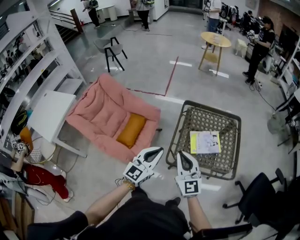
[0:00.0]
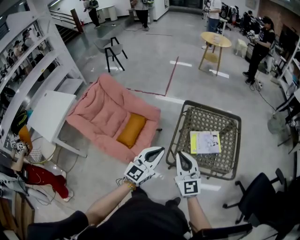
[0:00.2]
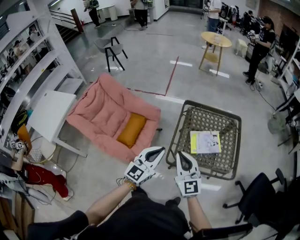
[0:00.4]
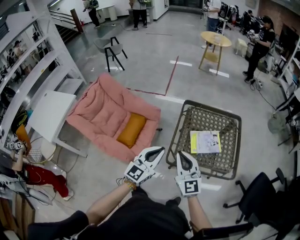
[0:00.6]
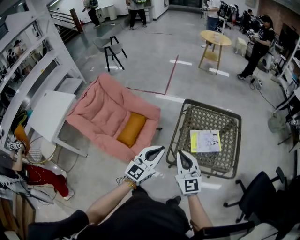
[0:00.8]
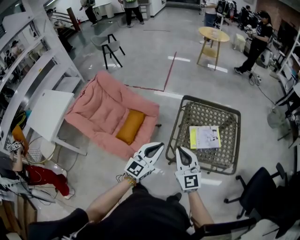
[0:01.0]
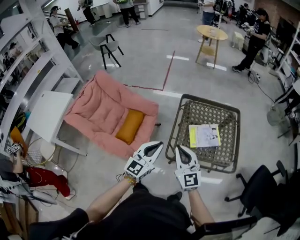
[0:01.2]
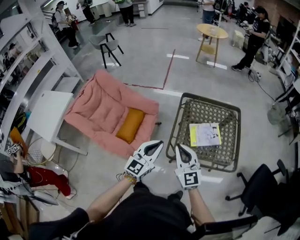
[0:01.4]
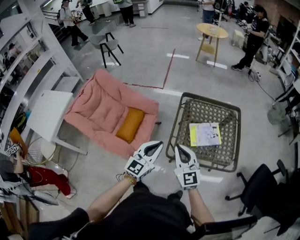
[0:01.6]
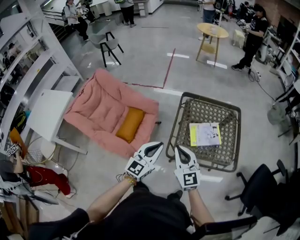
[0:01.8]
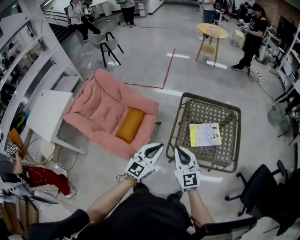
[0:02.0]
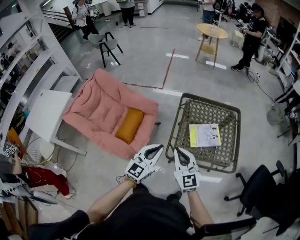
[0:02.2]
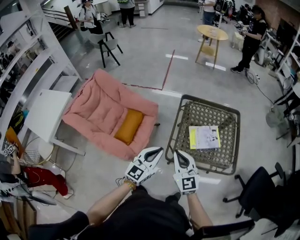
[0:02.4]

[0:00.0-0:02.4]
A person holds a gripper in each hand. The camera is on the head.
0:00.0 to 0:02.4: The grippers move only a little.

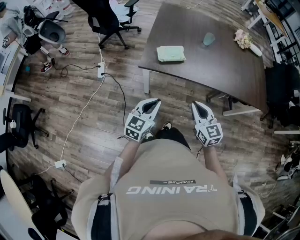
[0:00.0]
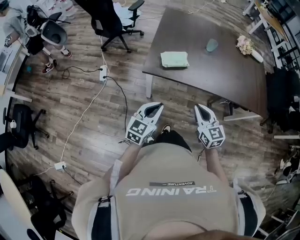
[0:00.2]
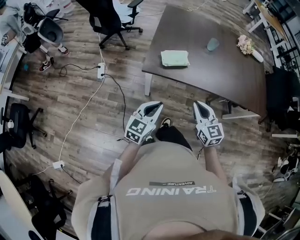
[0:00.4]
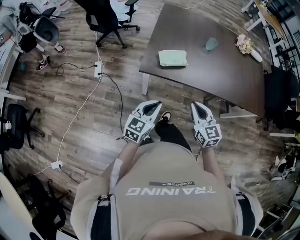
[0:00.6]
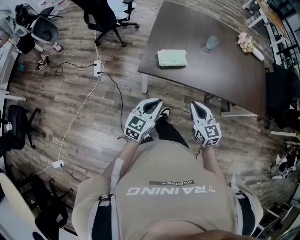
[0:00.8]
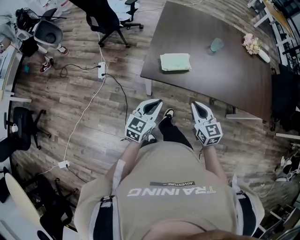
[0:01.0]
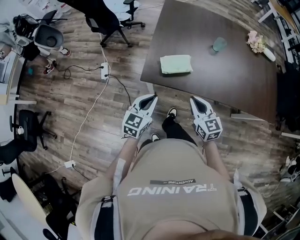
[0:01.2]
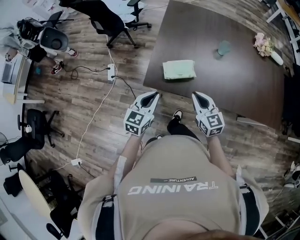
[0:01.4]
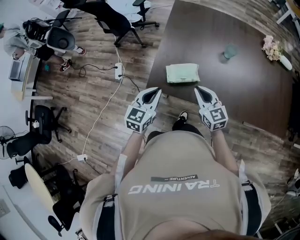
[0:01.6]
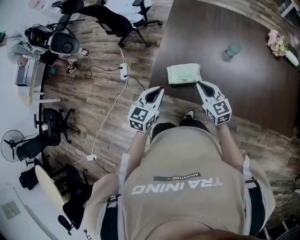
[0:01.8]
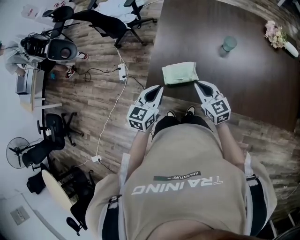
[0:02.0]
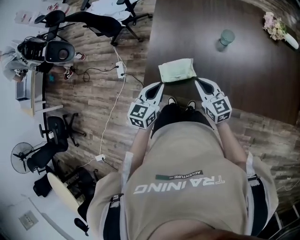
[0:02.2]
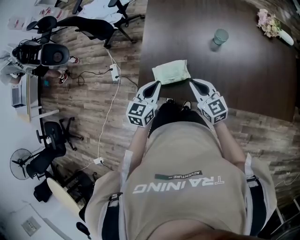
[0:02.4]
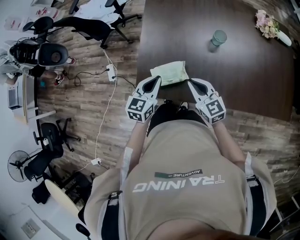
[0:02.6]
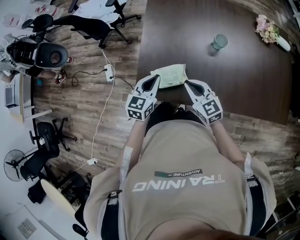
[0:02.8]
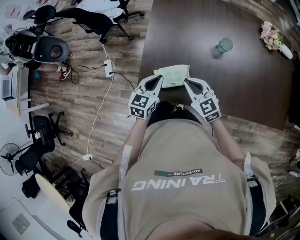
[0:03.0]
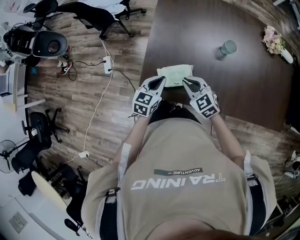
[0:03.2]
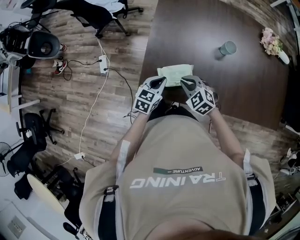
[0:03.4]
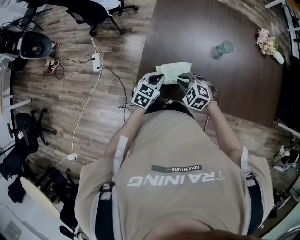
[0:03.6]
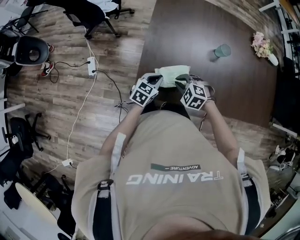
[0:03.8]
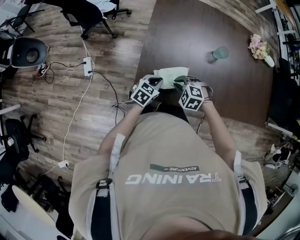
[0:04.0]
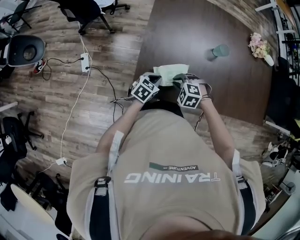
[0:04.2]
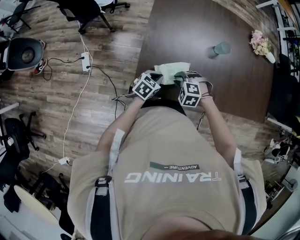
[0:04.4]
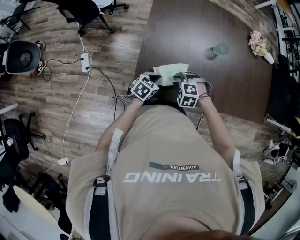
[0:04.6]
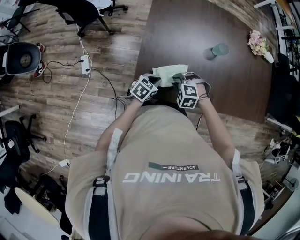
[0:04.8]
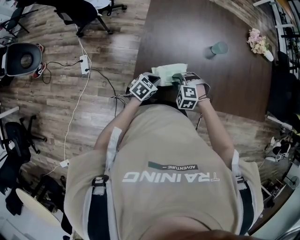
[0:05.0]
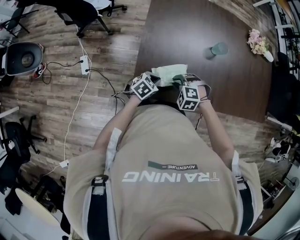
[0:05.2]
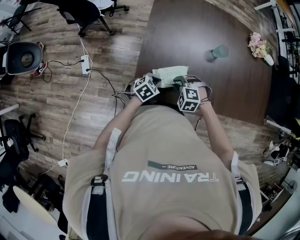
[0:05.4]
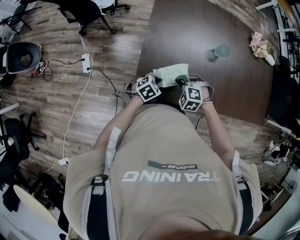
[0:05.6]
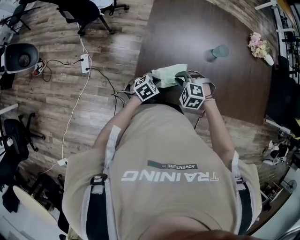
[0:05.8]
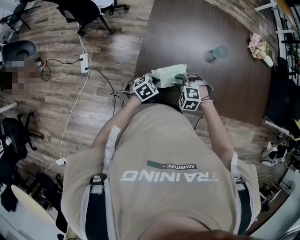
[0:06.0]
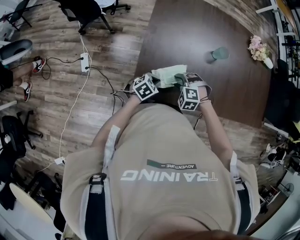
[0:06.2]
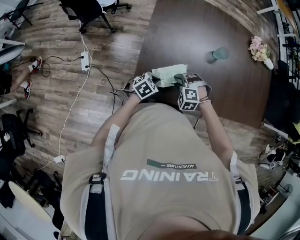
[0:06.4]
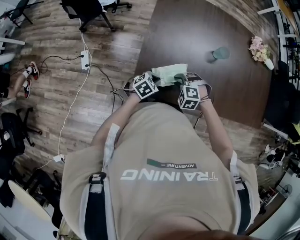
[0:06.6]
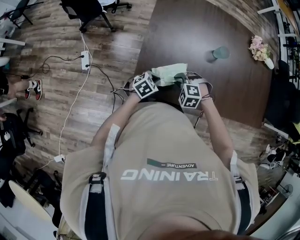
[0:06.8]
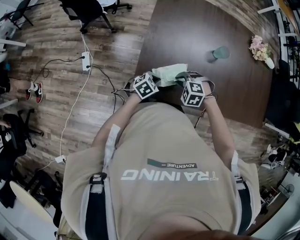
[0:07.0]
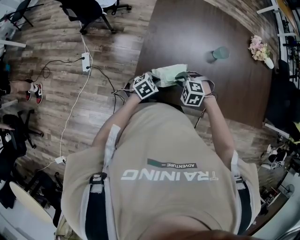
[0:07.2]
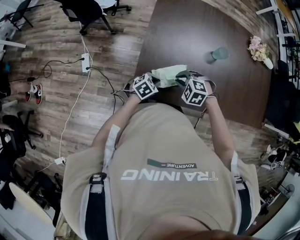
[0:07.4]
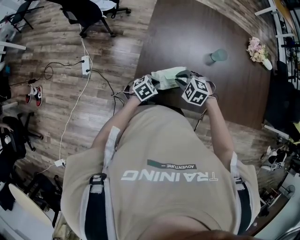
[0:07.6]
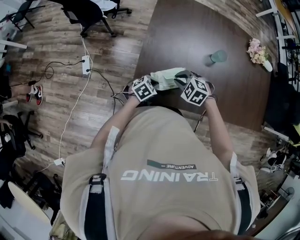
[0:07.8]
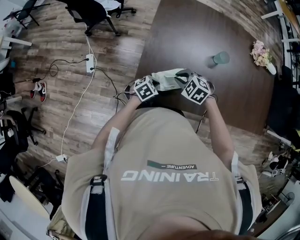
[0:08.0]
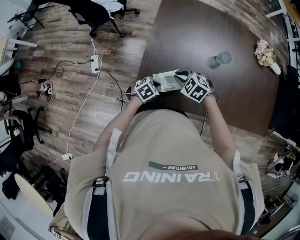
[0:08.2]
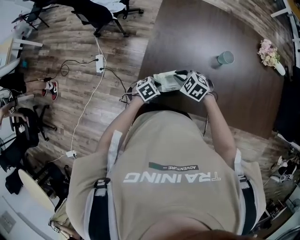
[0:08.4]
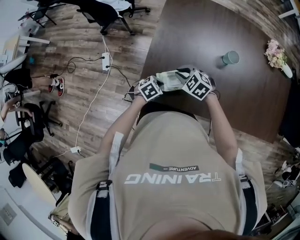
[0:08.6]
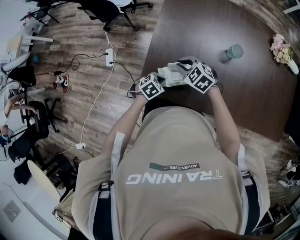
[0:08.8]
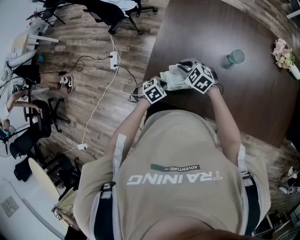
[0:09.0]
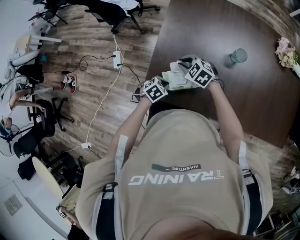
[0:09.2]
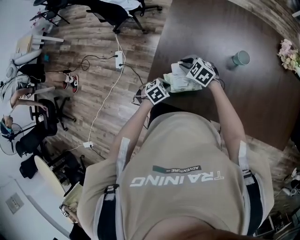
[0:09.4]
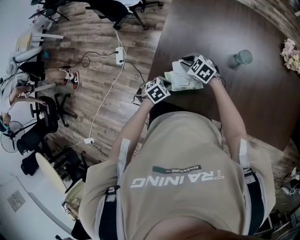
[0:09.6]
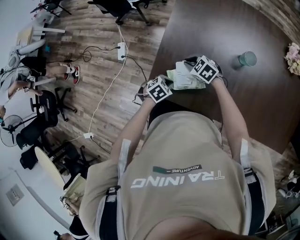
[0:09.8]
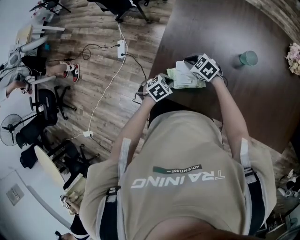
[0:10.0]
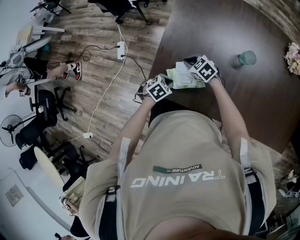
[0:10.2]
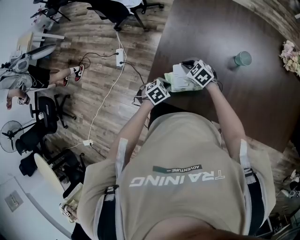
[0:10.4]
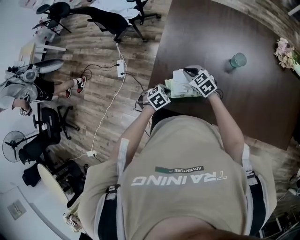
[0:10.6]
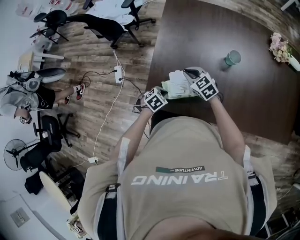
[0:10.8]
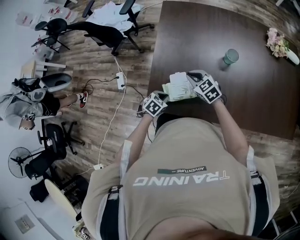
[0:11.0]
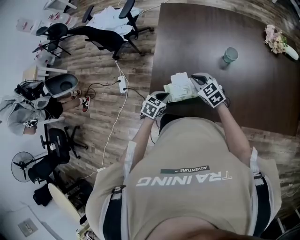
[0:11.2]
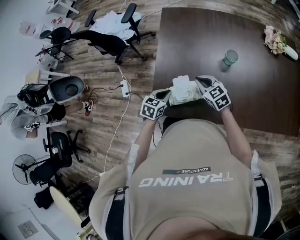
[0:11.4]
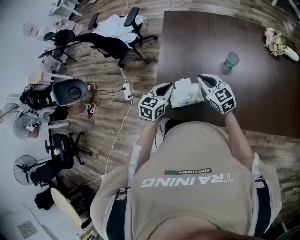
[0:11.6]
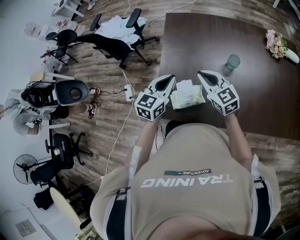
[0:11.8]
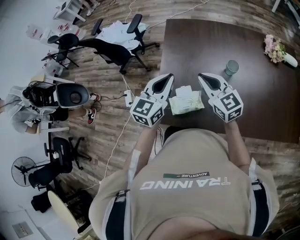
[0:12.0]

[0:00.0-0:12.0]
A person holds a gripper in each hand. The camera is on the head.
0:00.0 to 0:01.6: Both grippers move forward, some 25 cm.
0:01.6 to 0:03.0: The right gripper is displaced forward by about 5 cm, while the left gripper moves forward, downward and to the right, some 15 cm.
0:03.0 to 0:04.4: The left gripper shifts some 15 cm downward, and swivels some 30 degrees; the right gripper heads downward and to the left, covering about 15 cm, and tilts its fingers roughly 50 degrees downward.
0:04.4 to 0:06.0: The grippers make only small movements.
0:06.0 to 0:07.6: The right gripper moves approximately 5 cm, and closes up.
0:07.6 to 0:09.0: The right gripper moves approximately 5 cm, and swivels about 20 degrees.
0:09.0 to 0:10.4: The right gripper shifts some 5 cm downward.
0:10.4 to 0:12.0: Both grippers move upward, approximately 30 cm. The right gripper tilts its fingers approximately 40 degrees upward. The left gripper tips its fingers upward by approximately 60 degrees.

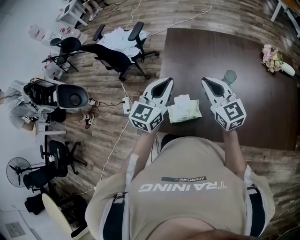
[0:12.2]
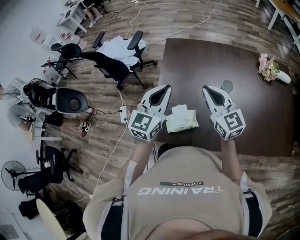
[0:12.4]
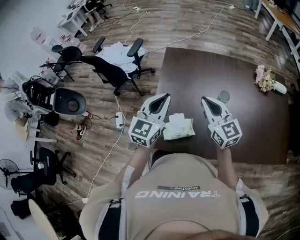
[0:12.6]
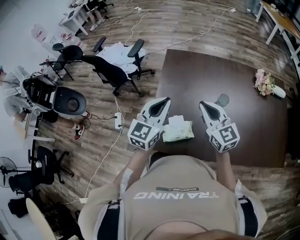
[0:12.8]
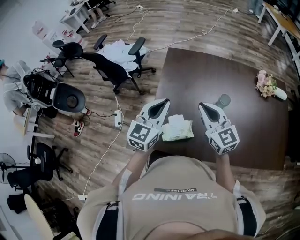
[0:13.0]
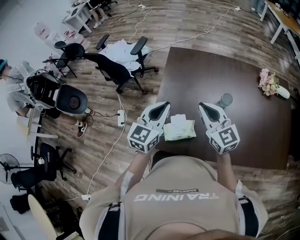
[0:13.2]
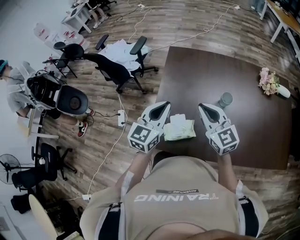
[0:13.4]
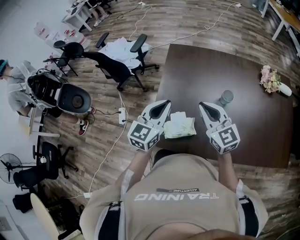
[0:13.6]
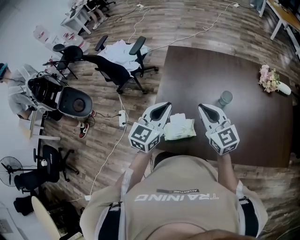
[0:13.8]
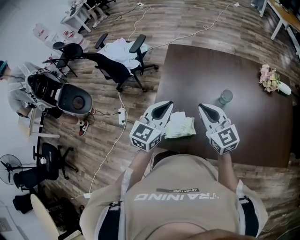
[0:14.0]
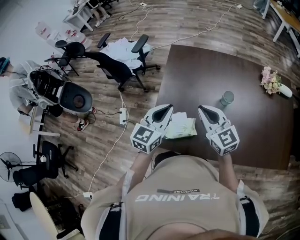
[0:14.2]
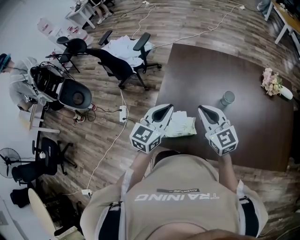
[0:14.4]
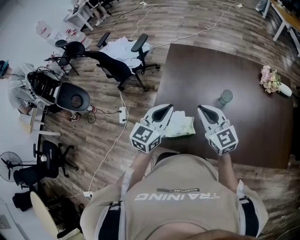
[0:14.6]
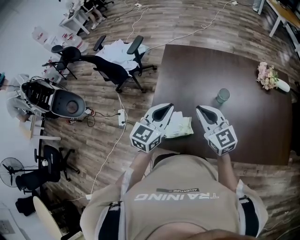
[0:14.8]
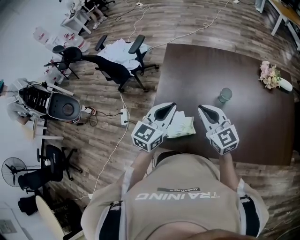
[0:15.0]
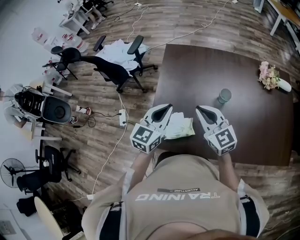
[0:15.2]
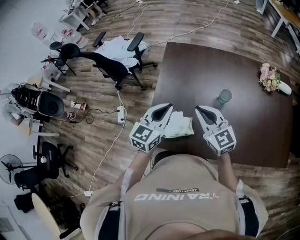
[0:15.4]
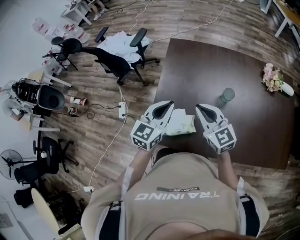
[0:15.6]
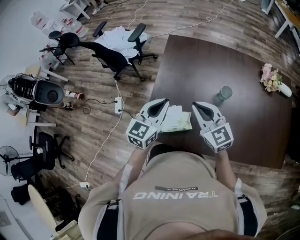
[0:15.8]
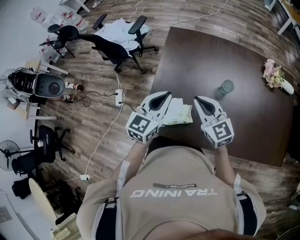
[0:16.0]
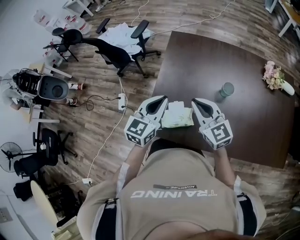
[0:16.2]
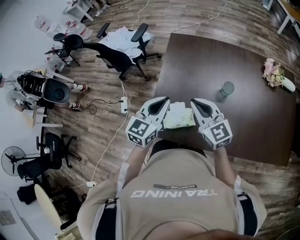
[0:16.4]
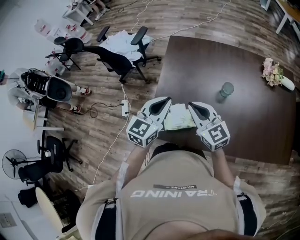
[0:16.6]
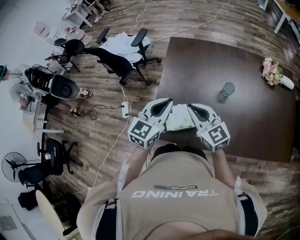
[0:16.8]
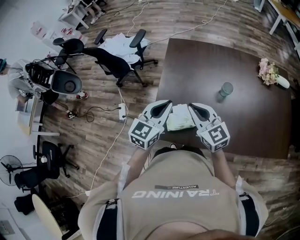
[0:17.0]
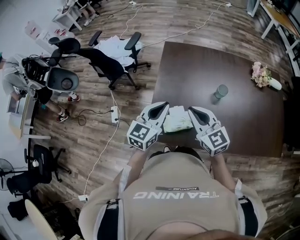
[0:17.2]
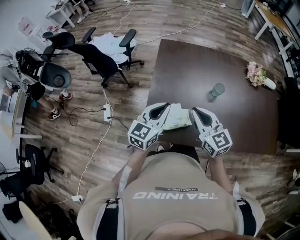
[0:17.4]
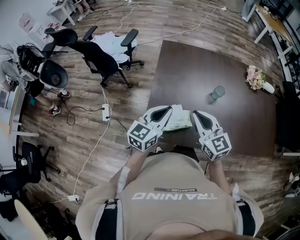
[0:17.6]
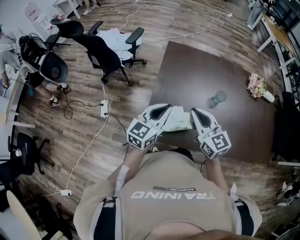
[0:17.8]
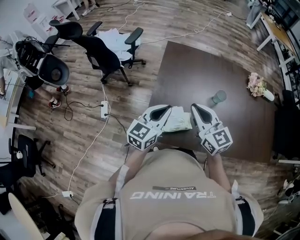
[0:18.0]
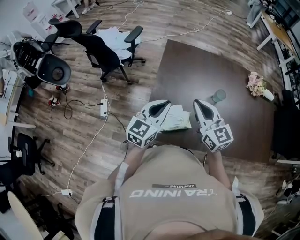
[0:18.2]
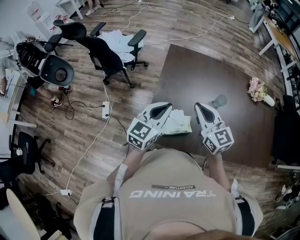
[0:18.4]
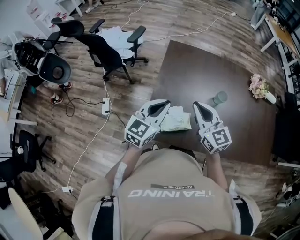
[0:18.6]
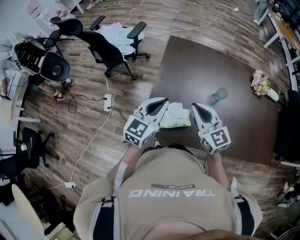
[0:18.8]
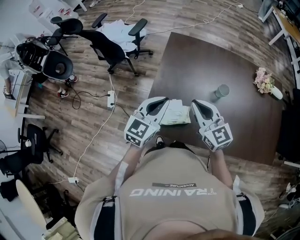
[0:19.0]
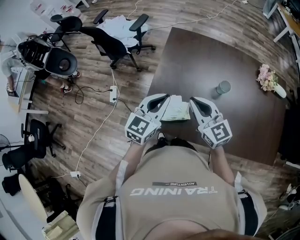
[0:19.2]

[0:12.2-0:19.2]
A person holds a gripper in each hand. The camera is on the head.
0:12.2 to 0:16.4: The grippers move only a little.
0:16.4 to 0:17.8: The grippers both shift to the left by about 5 cm.
0:17.8 to 0:19.2: The left gripper goes some 5 cm to the right. Meanwhile the right gripper shifts by approximately 5 cm.

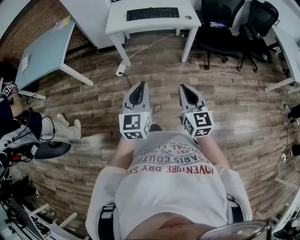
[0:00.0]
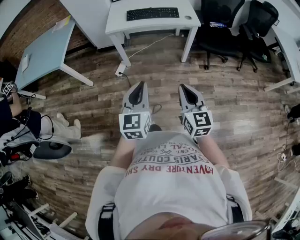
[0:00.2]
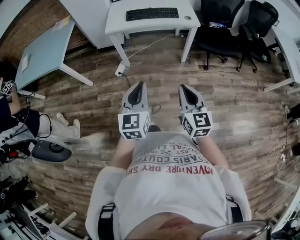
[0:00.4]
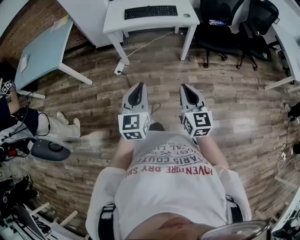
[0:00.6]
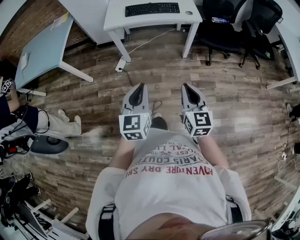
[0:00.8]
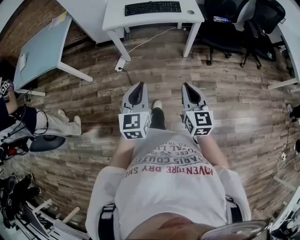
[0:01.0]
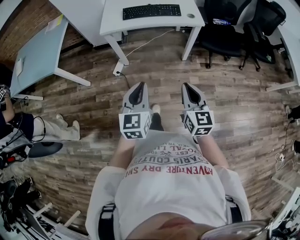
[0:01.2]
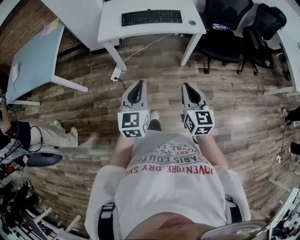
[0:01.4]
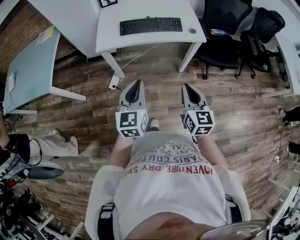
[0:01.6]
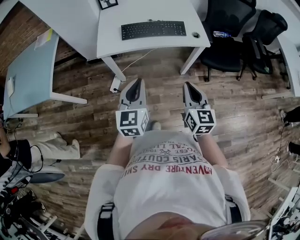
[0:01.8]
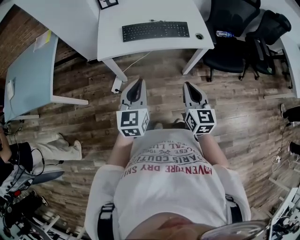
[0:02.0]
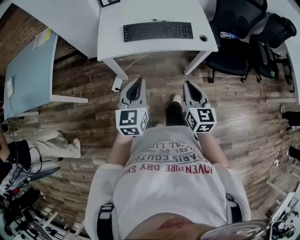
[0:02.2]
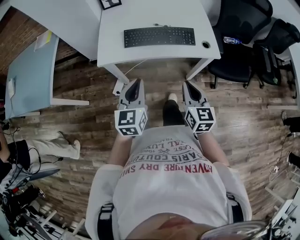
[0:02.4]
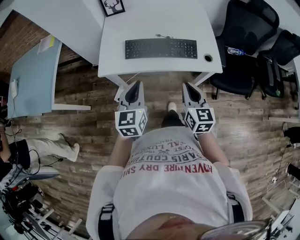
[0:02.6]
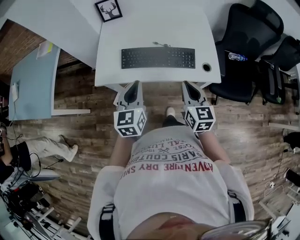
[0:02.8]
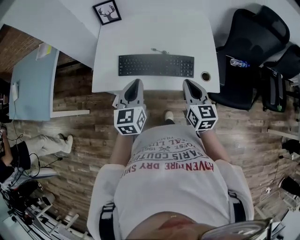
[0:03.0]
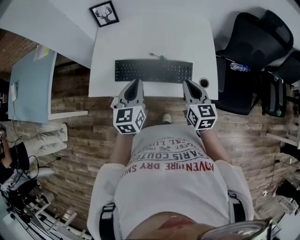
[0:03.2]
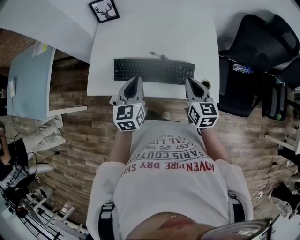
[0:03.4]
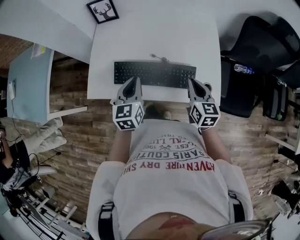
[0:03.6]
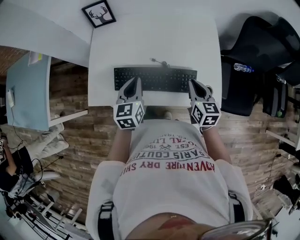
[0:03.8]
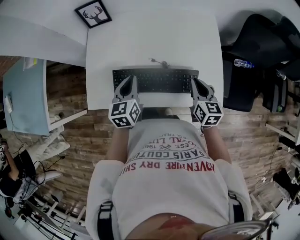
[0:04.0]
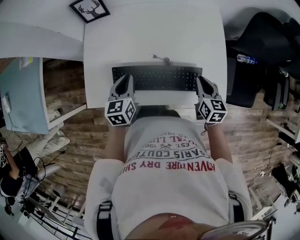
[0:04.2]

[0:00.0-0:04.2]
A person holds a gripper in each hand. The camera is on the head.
0:00.0 to 0:01.4: The grippers both shift forward by approximately 20 cm.
0:01.4 to 0:02.8: Both grippers move forward, some 40 cm.
0:02.8 to 0:04.2: The right gripper is displaced forward, downward and to the right by roughly 25 cm. The left gripper goes roughly 25 cm forward and downward.
